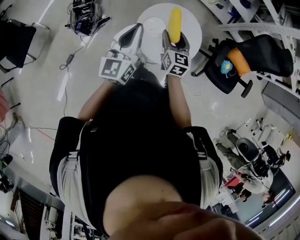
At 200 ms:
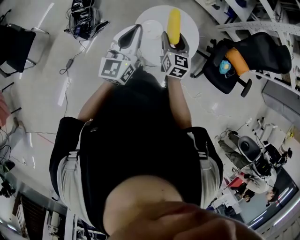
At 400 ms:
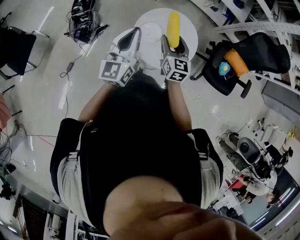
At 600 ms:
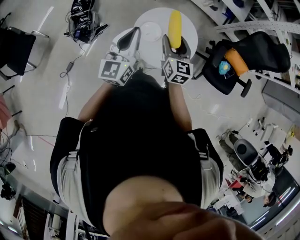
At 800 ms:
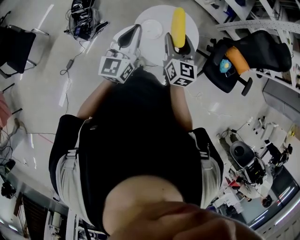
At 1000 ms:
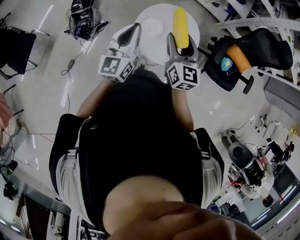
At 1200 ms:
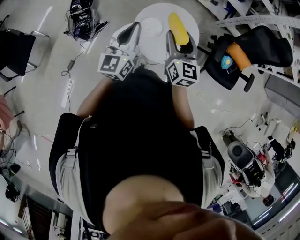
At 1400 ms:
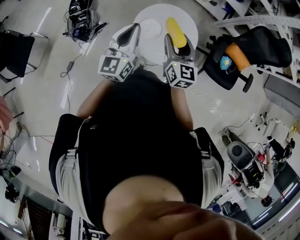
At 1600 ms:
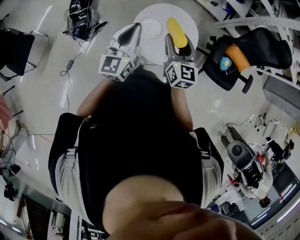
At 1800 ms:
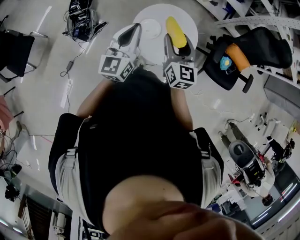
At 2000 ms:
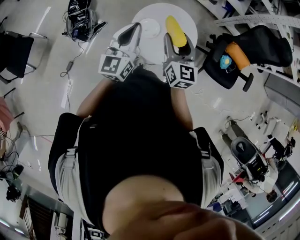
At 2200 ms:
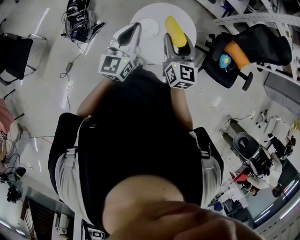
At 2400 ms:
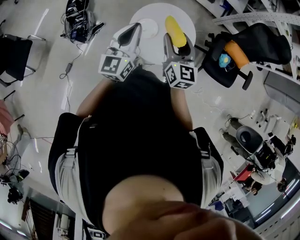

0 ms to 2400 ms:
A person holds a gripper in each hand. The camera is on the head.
0 ms to 1200 ms: The right gripper is displaced upward by some 10 cm.
1200 ms to 2400 ms: The grippers make only small movements.

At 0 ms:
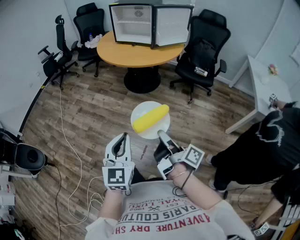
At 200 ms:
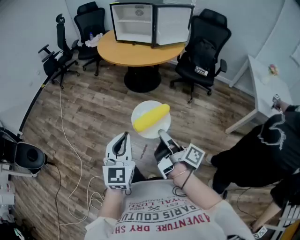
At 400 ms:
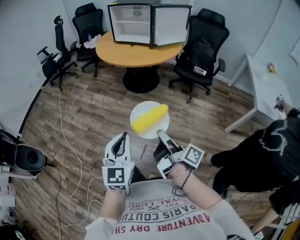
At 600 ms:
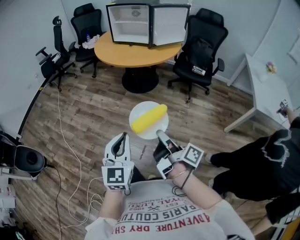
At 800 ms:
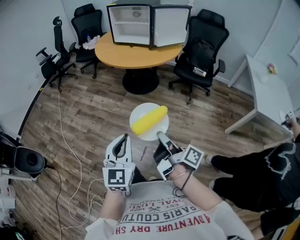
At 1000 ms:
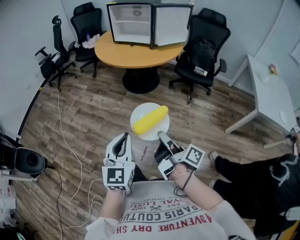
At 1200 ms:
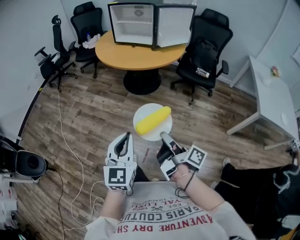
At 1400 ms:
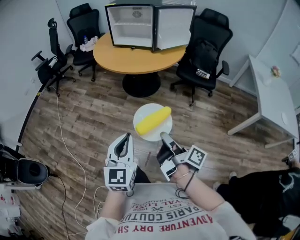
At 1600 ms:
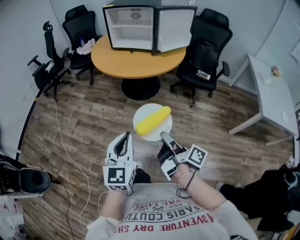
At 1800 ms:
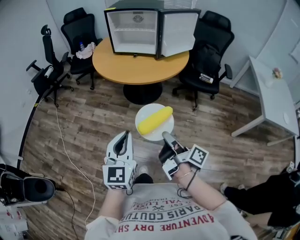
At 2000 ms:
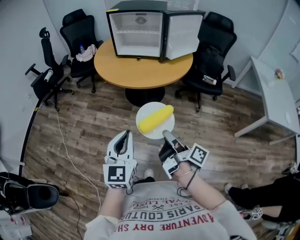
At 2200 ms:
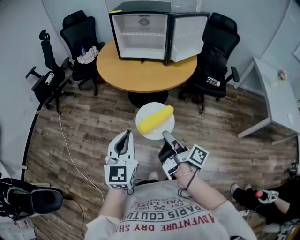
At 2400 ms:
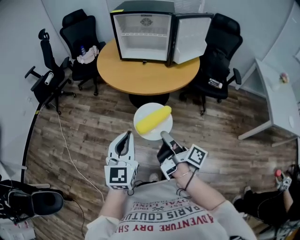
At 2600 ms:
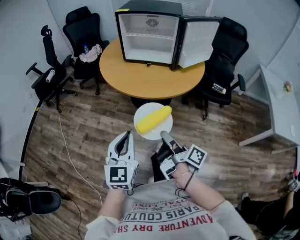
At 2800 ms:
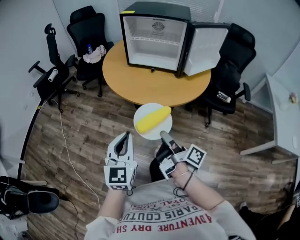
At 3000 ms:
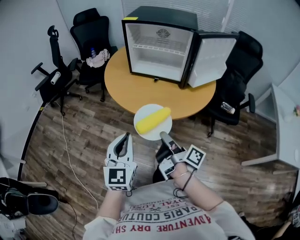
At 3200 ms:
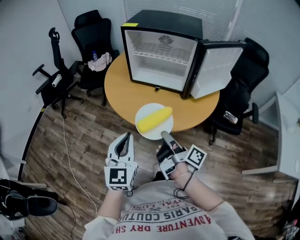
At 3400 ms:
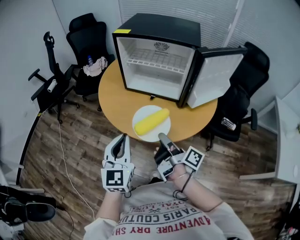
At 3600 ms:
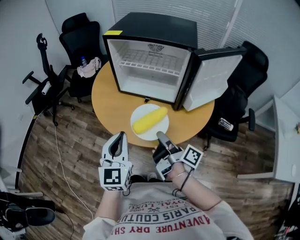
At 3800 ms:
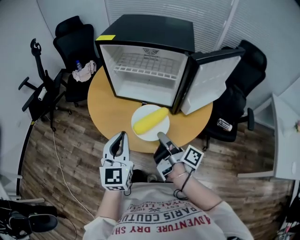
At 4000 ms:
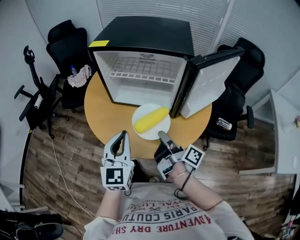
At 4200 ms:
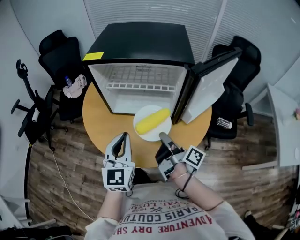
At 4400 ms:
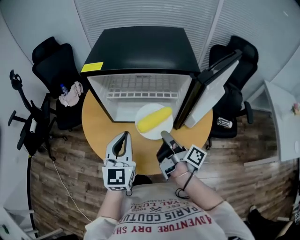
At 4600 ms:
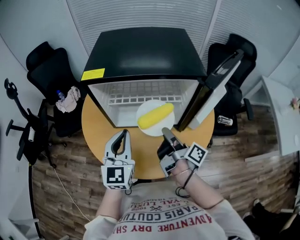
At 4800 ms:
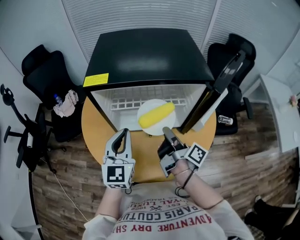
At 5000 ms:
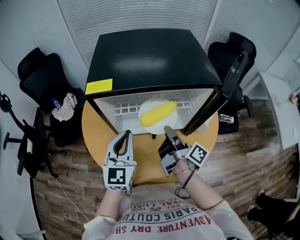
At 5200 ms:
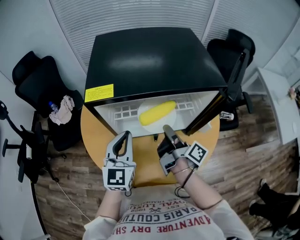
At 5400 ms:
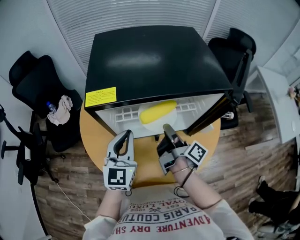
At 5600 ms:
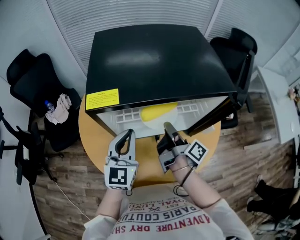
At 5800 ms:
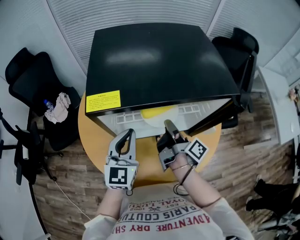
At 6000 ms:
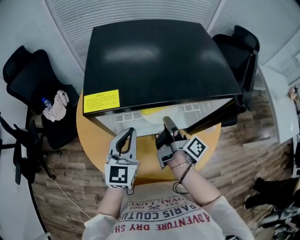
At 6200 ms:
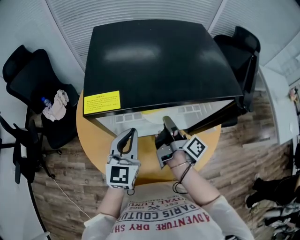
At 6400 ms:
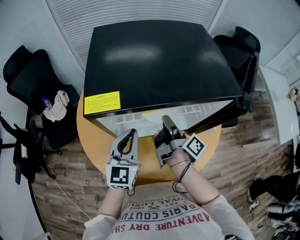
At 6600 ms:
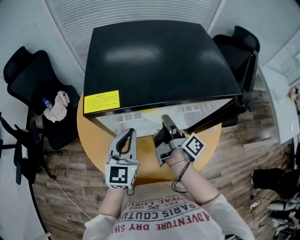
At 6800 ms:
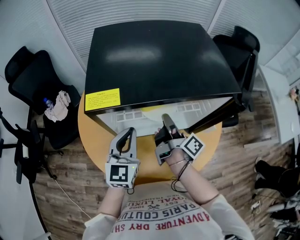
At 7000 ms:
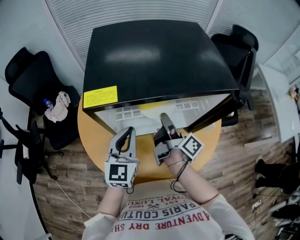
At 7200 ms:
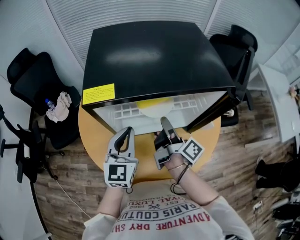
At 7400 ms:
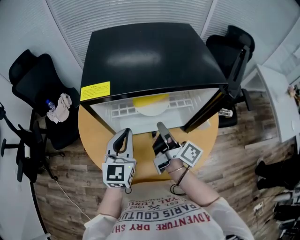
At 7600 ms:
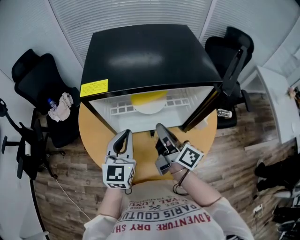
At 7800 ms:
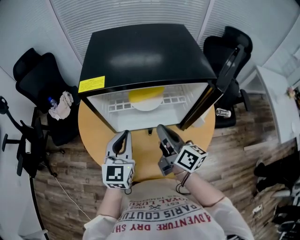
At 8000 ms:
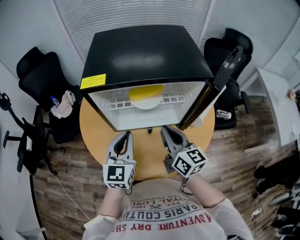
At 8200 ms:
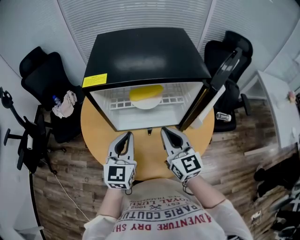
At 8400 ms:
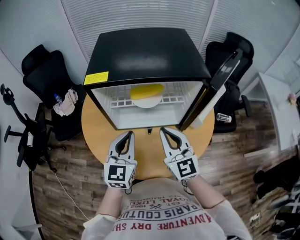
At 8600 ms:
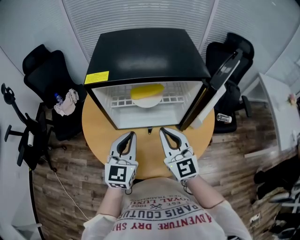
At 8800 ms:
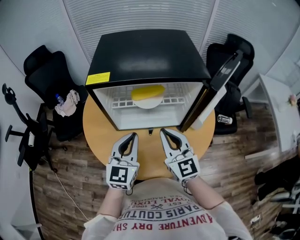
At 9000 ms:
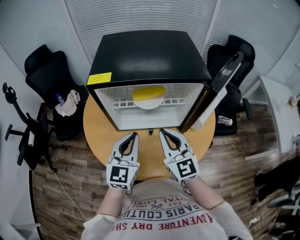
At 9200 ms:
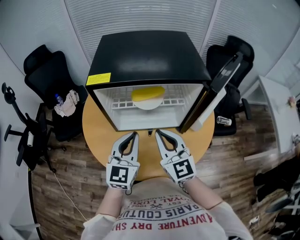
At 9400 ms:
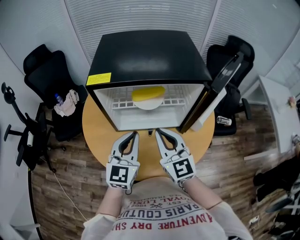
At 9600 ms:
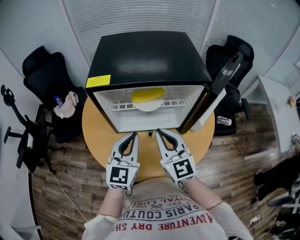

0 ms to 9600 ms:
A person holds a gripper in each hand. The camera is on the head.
0 ms to 1600 ms: The left gripper moves about 15 cm.
1600 ms to 3200 ms: The left gripper shifts by some 40 cm.
3200 ms to 4800 ms: The left gripper shifts by approximately 40 cm, and swivels some 20 degrees.
4800 ms to 6400 ms: The left gripper ends up some 10 cm from where it was.
6400 ms to 8000 ms: The left gripper moves about 10 cm.

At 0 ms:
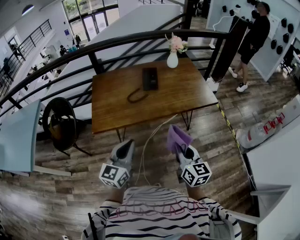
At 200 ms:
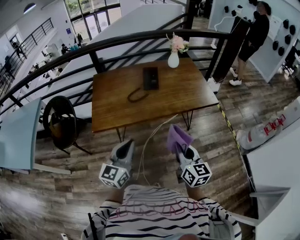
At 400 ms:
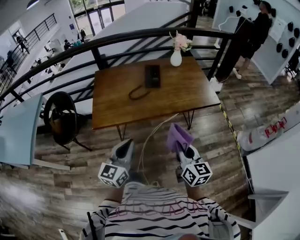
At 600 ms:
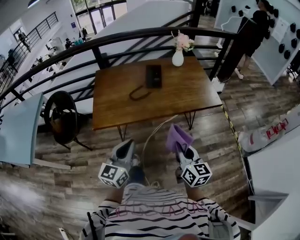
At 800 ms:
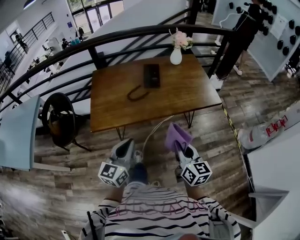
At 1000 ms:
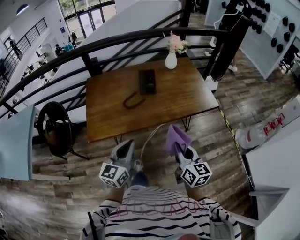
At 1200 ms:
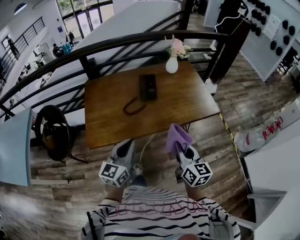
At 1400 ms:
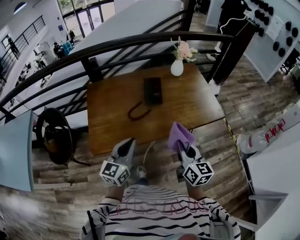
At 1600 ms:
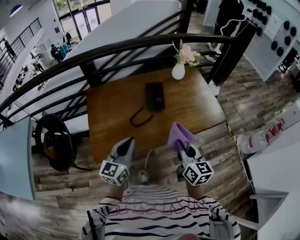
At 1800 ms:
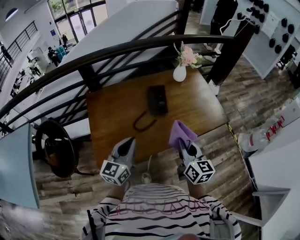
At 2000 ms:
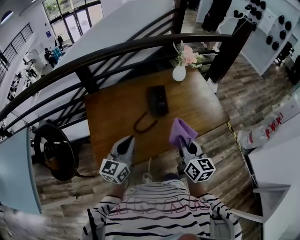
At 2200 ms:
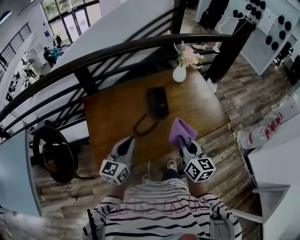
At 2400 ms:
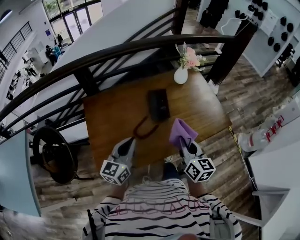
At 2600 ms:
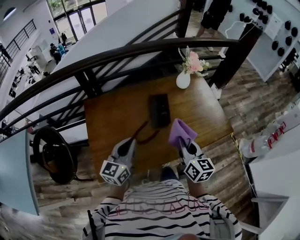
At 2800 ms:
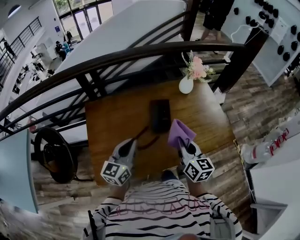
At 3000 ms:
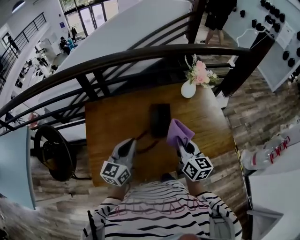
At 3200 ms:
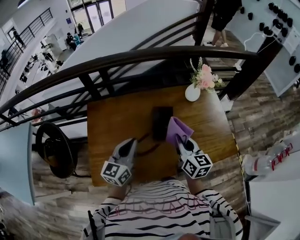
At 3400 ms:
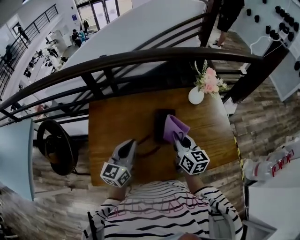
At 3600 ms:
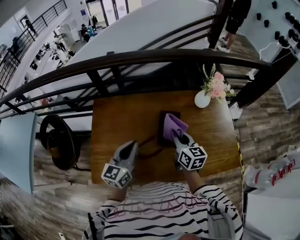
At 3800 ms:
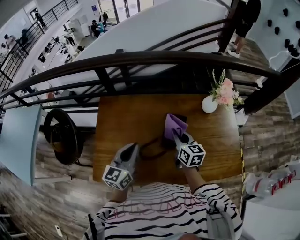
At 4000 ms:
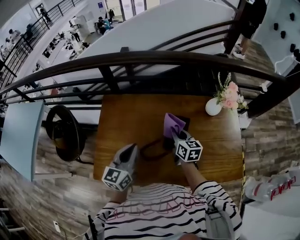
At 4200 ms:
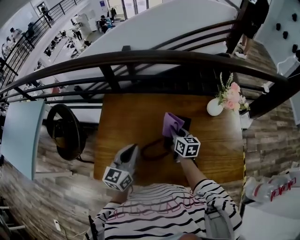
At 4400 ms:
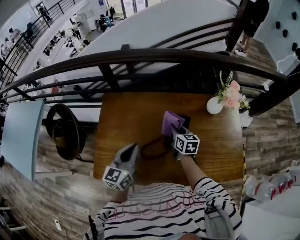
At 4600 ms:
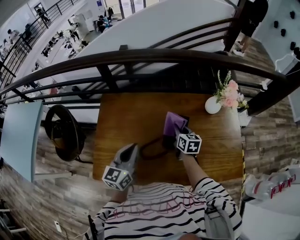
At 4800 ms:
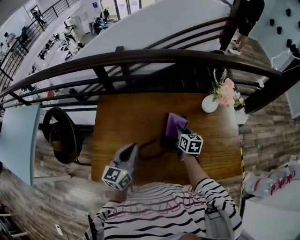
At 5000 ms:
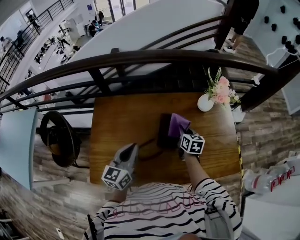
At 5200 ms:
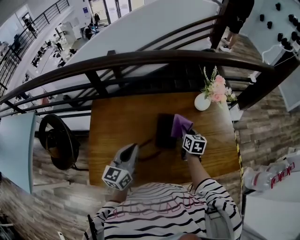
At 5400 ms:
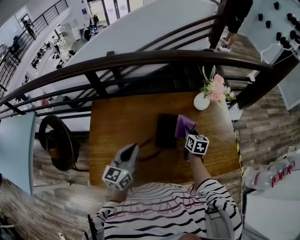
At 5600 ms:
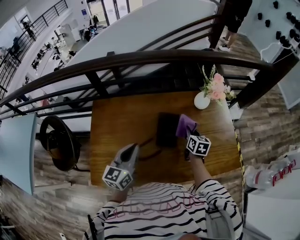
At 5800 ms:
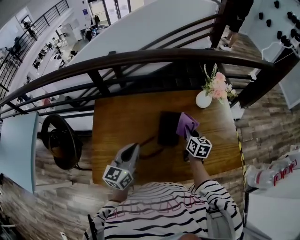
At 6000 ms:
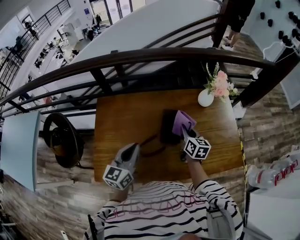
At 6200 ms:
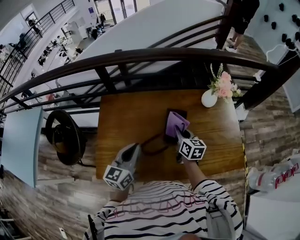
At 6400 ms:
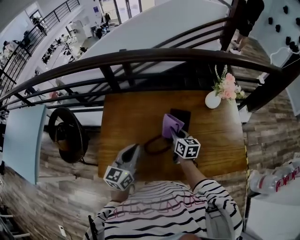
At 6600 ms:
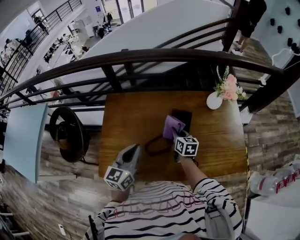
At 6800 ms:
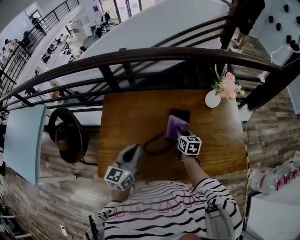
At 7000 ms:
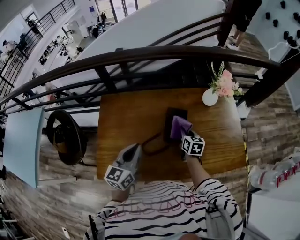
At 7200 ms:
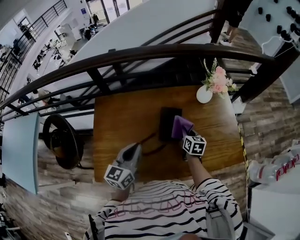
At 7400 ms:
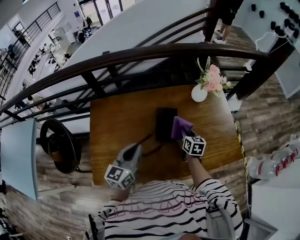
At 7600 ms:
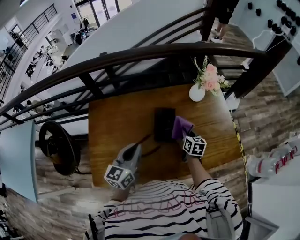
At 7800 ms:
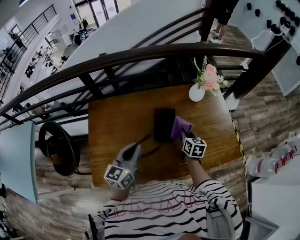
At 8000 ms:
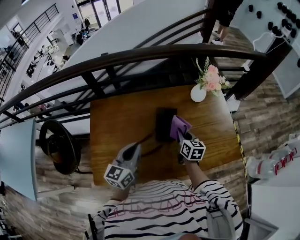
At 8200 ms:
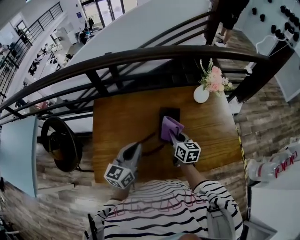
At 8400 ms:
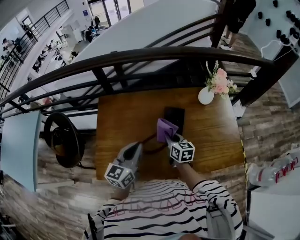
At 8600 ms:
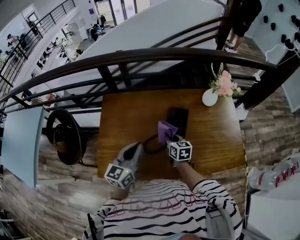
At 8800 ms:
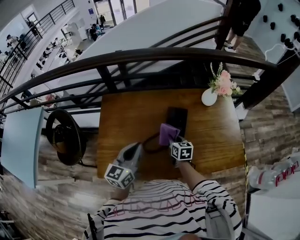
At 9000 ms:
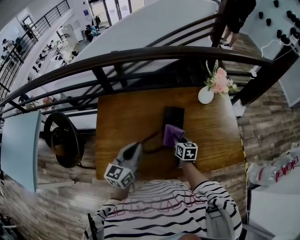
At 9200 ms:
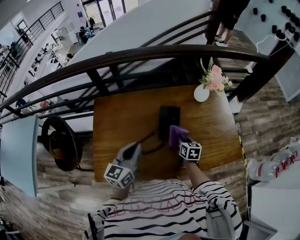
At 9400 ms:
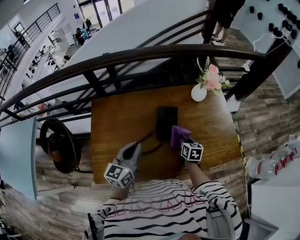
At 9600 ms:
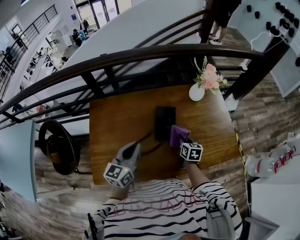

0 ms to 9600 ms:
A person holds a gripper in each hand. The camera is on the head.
0 ms to 1600 ms: The grippers both shift forward by roughly 30 cm.
1600 ms to 3200 ms: The two grippers go about 25 cm forward.
3200 ms to 4800 ms: The left gripper moves roughly 5 cm; the right gripper travels forward and downward by some 25 cm.
4800 ms to 6400 ms: The left gripper moves backward, some 5 cm; the right gripper heads backward and to the left, covering approximately 10 cm.
6400 ms to 8000 ms: The right gripper travels to the right by about 10 cm. Meanwhile the left gripper travels to the right by roughly 5 cm.
8000 ms to 9600 ms: The right gripper shifts about 5 cm downward, and moves about 15 cm to the left and comes back.

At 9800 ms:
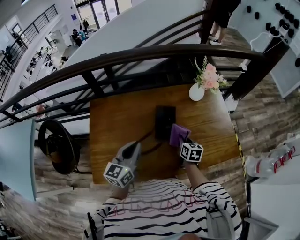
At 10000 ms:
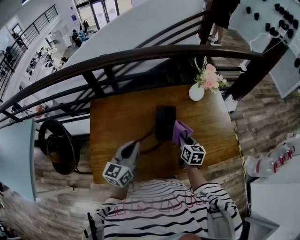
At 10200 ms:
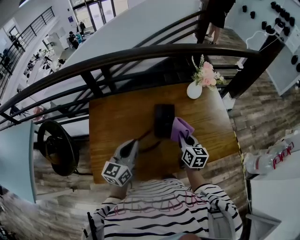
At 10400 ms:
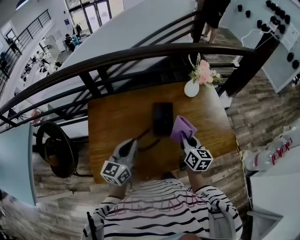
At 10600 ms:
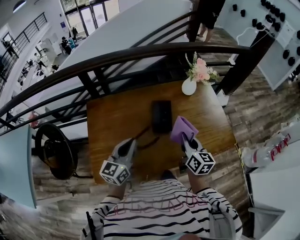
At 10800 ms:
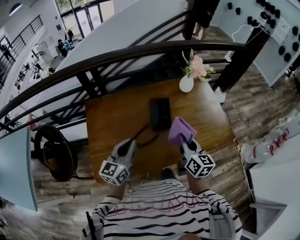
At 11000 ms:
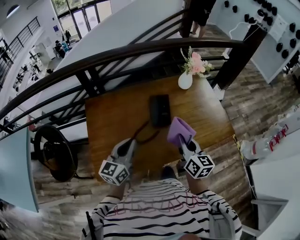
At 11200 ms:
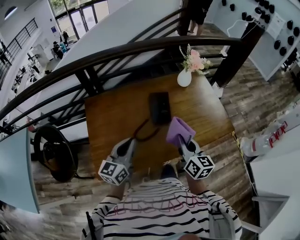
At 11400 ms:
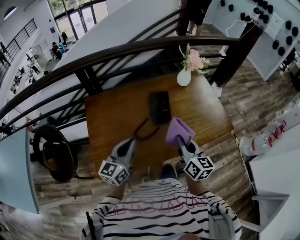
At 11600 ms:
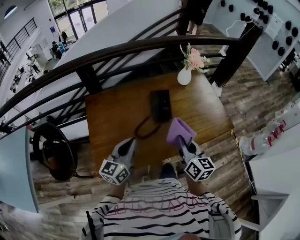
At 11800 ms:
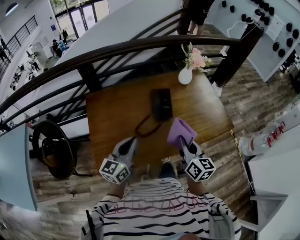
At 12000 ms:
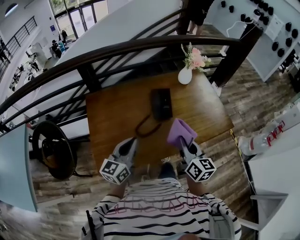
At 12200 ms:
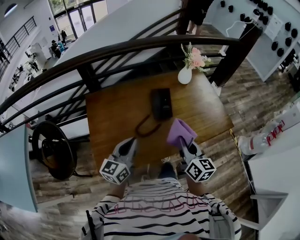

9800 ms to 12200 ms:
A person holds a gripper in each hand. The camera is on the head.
9800 ms to 11000 ms: The right gripper is displaced upward and backward by roughly 25 cm, and swivels approximately 30 degrees; the left gripper goes some 10 cm backward.
11000 ms to 12200 ms: Both grippers travel together backward, approximately 5 cm.
